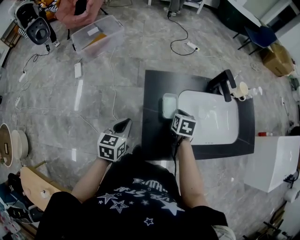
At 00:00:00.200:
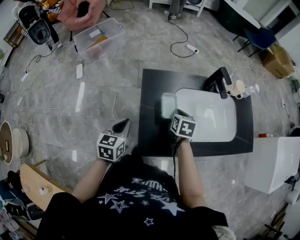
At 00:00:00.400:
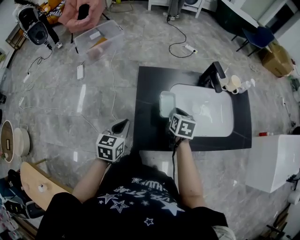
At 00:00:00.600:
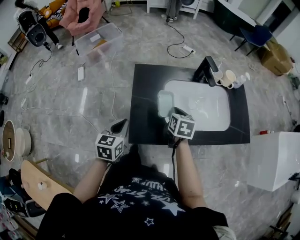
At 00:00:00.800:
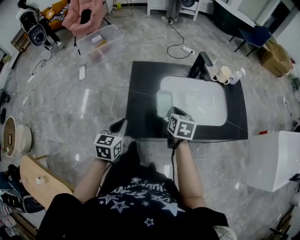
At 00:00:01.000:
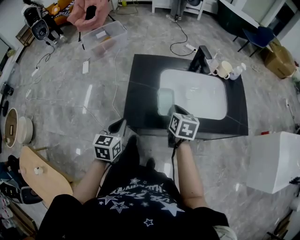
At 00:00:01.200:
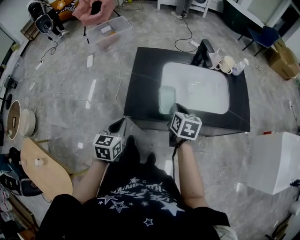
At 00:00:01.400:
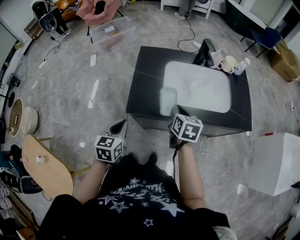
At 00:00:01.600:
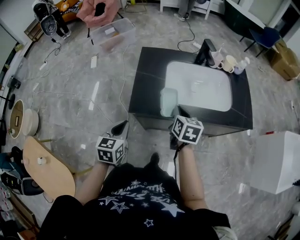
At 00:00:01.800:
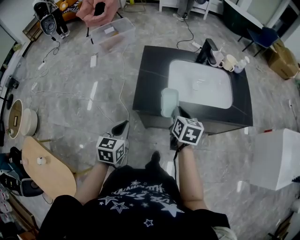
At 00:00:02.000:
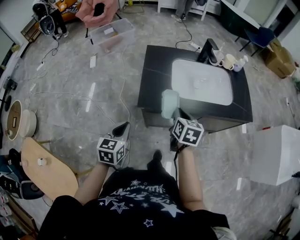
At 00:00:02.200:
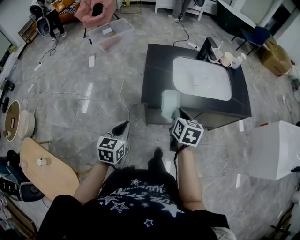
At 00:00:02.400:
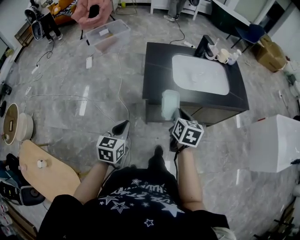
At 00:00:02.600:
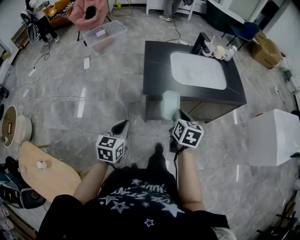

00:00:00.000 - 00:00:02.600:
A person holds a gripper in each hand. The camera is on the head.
00:00:00.000 - 00:00:01.200: The right gripper shifts roughly 20 cm backward, to the right and upward. Meanwhile the left gripper is displaced backward and to the right by about 25 cm.
00:00:01.200 - 00:00:02.600: The left gripper heads backward and to the left, covering roughly 20 cm, while the right gripper heads backward, covering about 20 cm.

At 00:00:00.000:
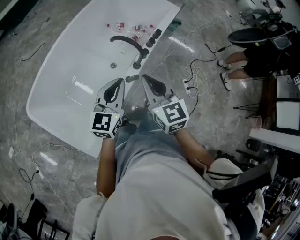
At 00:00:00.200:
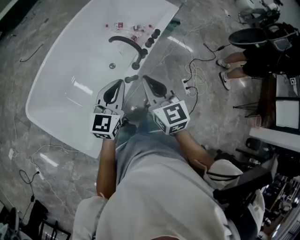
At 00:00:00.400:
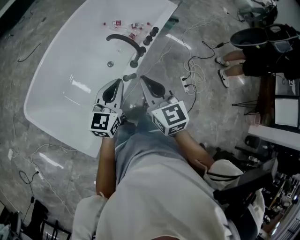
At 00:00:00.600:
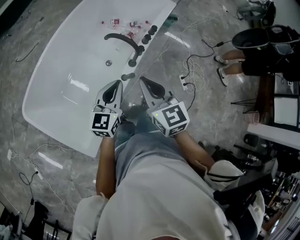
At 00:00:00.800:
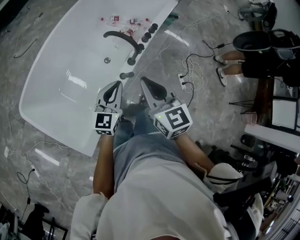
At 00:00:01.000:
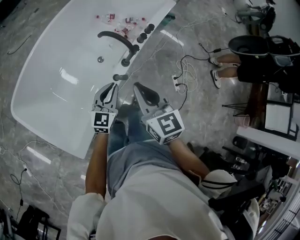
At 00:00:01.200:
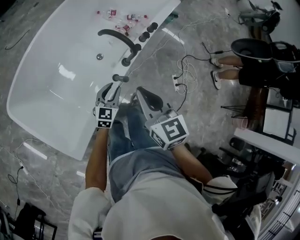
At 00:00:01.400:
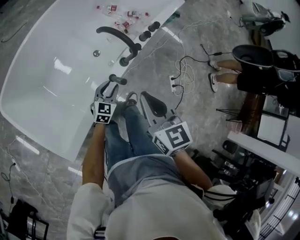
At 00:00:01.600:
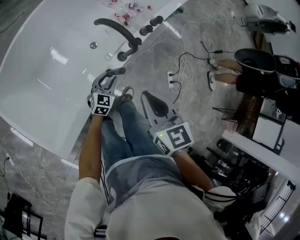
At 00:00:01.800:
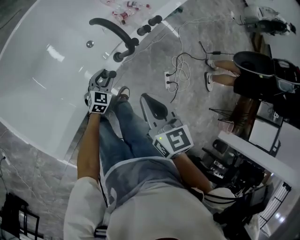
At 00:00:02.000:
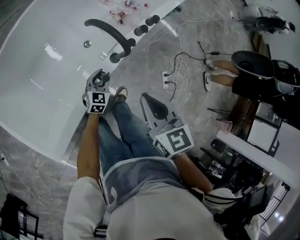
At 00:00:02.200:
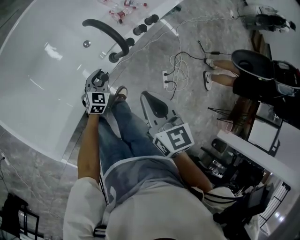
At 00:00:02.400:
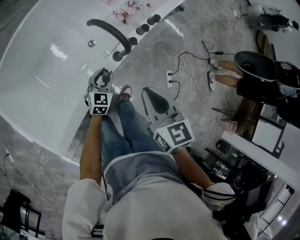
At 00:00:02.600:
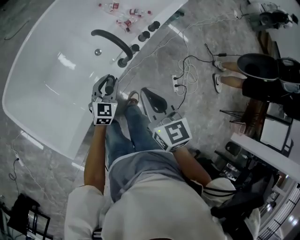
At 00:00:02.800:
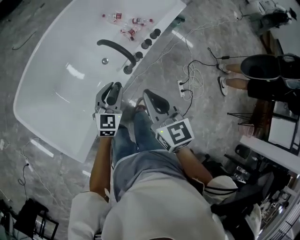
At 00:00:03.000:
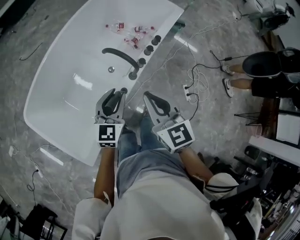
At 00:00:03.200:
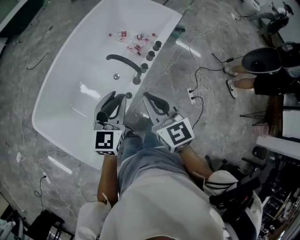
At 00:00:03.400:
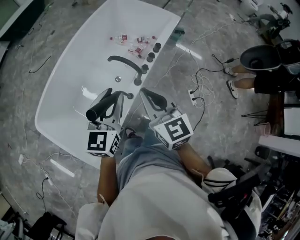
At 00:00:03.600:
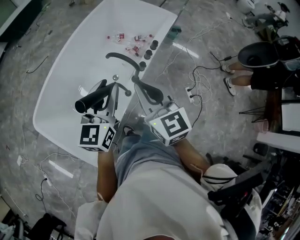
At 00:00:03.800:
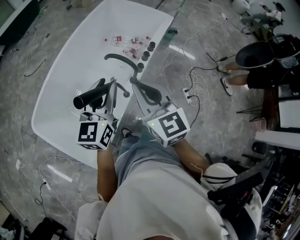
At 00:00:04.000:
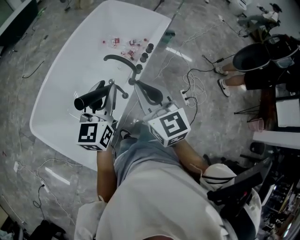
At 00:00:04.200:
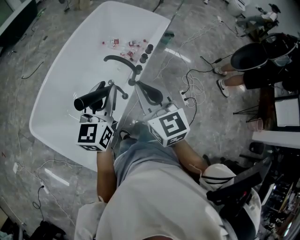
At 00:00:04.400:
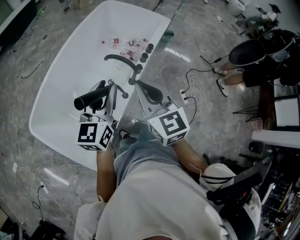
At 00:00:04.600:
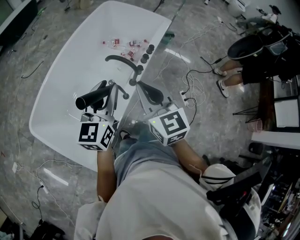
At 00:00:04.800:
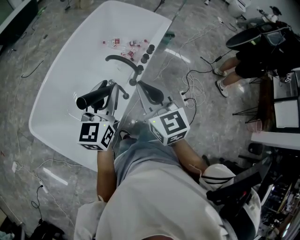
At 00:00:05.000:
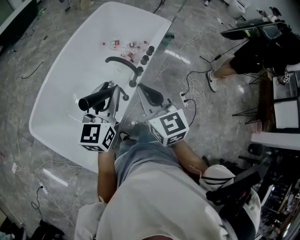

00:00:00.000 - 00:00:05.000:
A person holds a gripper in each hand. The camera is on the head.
00:00:00.000 - 00:00:01.600: The right gripper goes about 30 cm downward. Meanwhile the left gripper travels downward by about 50 cm, changes its angle by about 20 degrees, and opens its fingers.
00:00:01.600 - 00:00:03.400: The right gripper moves upward, some 30 cm. The left gripper goes approximately 60 cm upward.
00:00:03.400 - 00:00:05.000: Both grippers move upward, approximately 5 cm.

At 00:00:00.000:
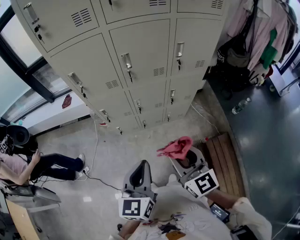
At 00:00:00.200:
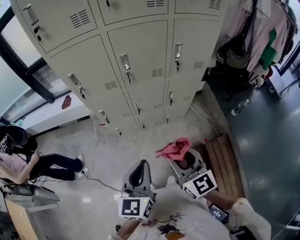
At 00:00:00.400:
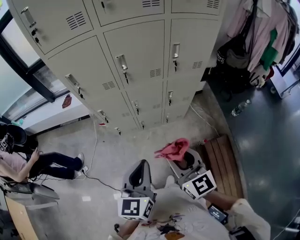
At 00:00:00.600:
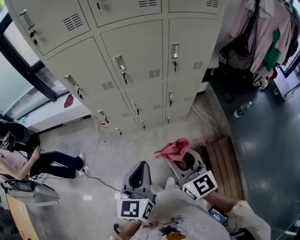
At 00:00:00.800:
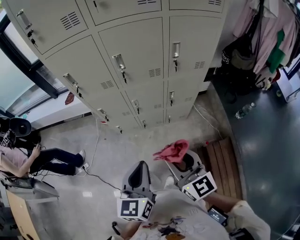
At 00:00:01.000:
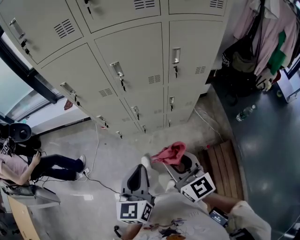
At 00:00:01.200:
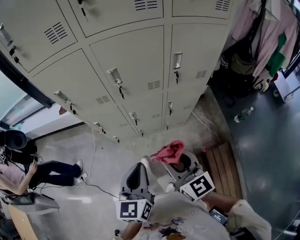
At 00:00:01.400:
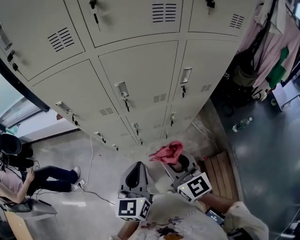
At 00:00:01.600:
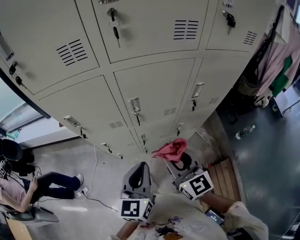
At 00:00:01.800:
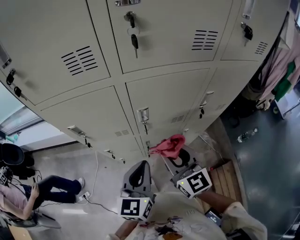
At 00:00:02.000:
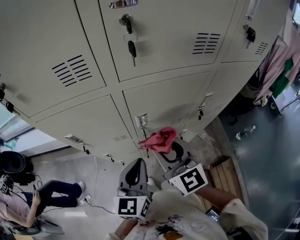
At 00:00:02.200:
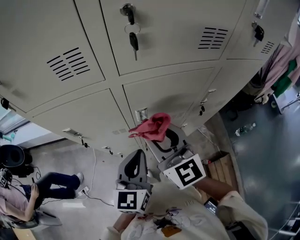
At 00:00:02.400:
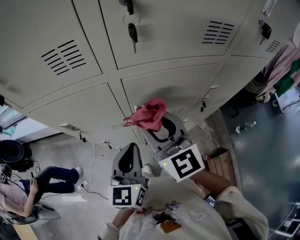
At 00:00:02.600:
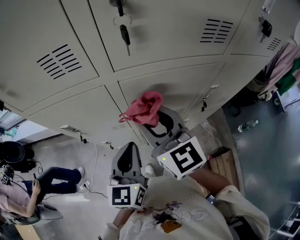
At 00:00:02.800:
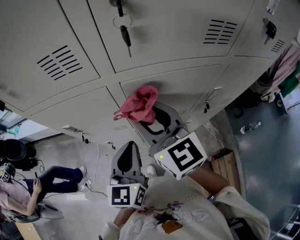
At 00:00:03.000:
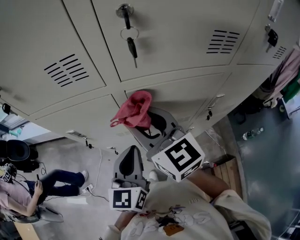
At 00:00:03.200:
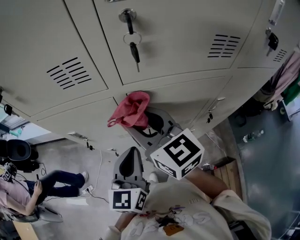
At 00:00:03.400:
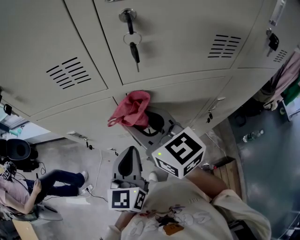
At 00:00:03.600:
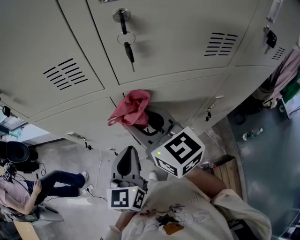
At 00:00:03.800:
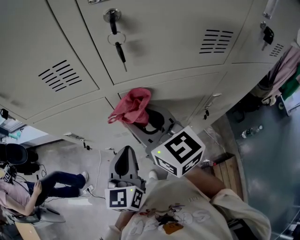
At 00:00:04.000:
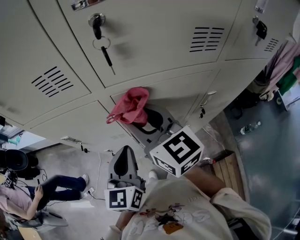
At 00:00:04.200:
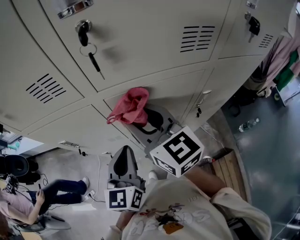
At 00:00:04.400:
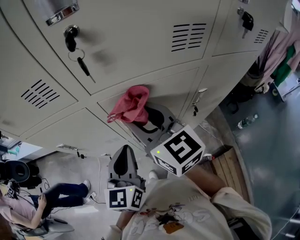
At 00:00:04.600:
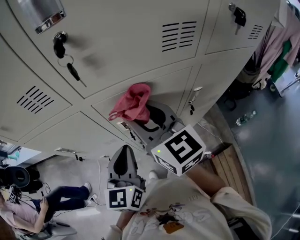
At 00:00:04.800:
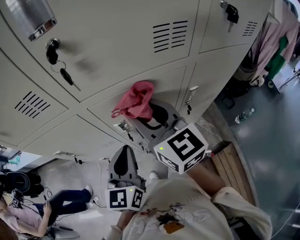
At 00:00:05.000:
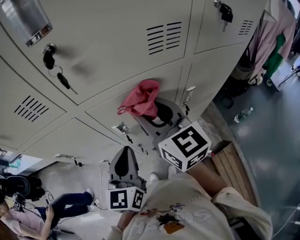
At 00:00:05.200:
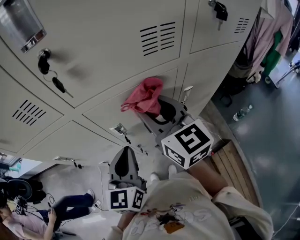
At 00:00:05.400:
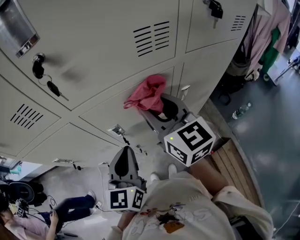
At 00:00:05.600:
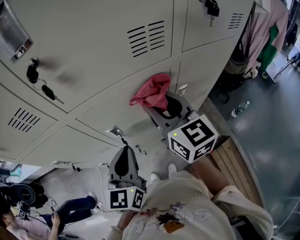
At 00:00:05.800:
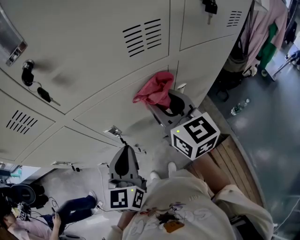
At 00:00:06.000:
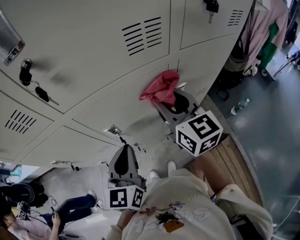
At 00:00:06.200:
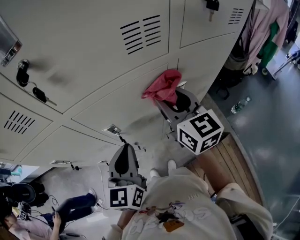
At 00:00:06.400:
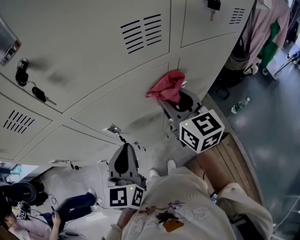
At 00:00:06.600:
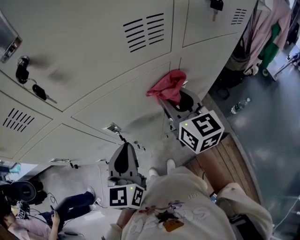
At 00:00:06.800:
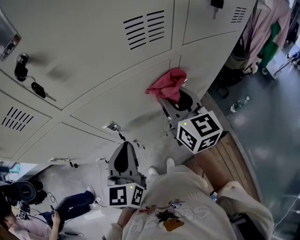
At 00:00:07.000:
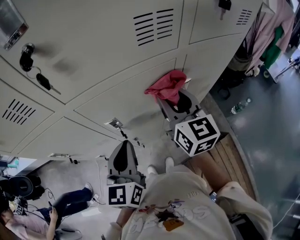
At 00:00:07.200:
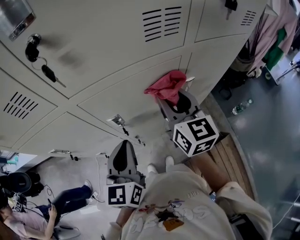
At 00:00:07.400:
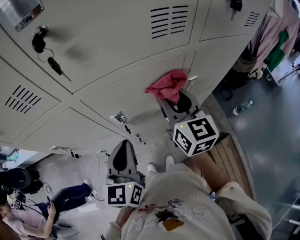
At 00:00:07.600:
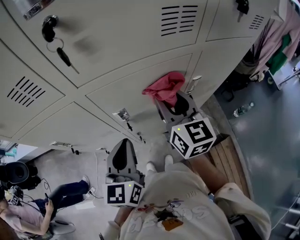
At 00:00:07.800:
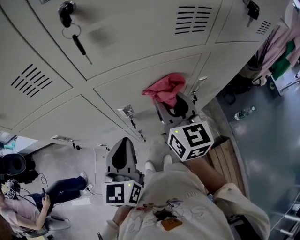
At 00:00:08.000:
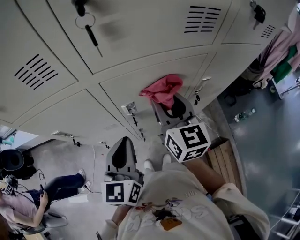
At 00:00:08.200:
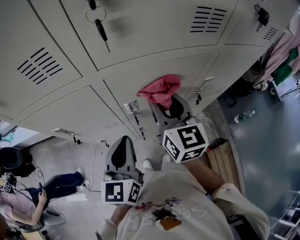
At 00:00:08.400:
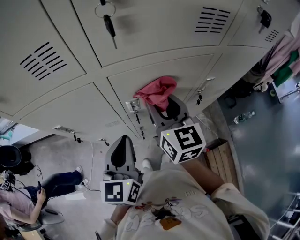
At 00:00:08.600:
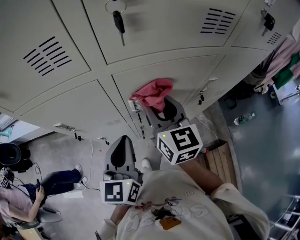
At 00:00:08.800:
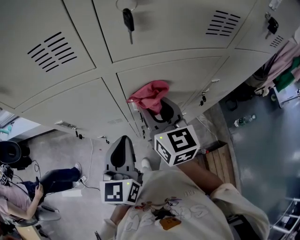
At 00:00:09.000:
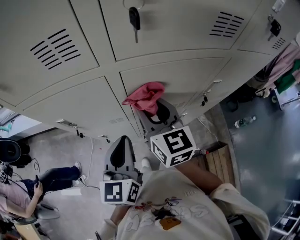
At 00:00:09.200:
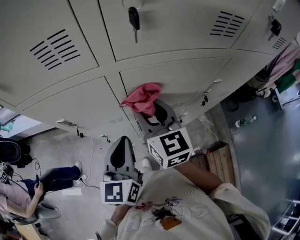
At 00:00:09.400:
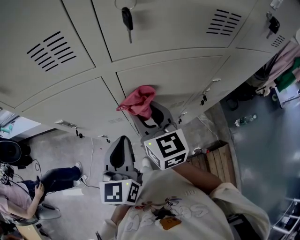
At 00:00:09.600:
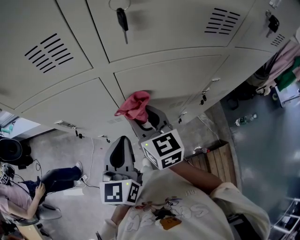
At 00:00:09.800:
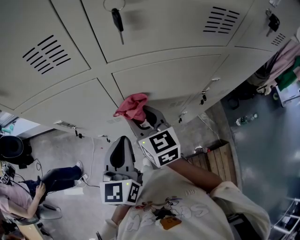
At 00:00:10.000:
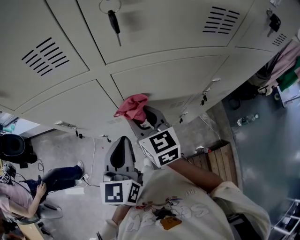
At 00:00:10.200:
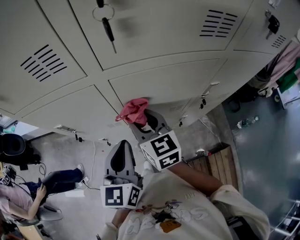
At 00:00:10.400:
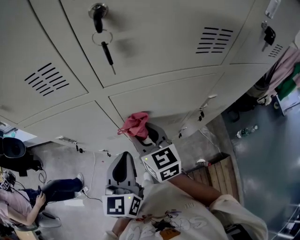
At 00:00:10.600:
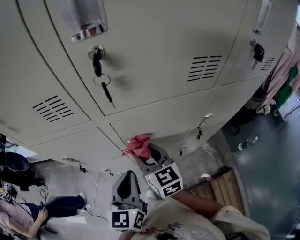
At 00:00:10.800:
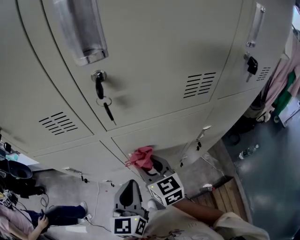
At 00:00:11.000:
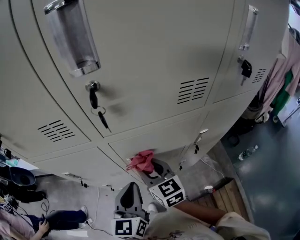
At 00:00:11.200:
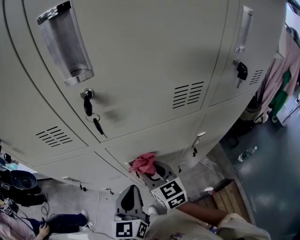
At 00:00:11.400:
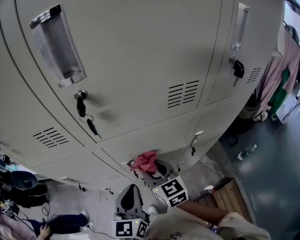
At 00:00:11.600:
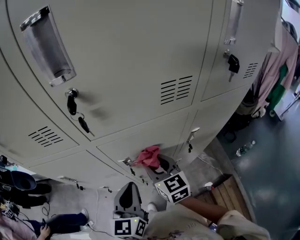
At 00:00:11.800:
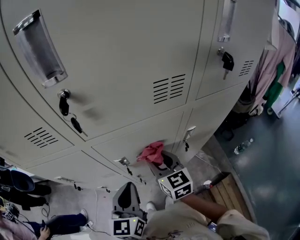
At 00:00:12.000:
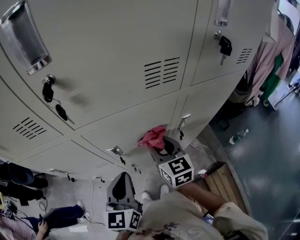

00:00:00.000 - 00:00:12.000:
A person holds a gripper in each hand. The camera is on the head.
00:00:00.000 - 00:00:01.600: Both grippers move forward, approximately 25 cm.
00:00:01.600 - 00:00:03.000: The left gripper heads forward, covering some 15 cm; the right gripper heads forward, upward and to the left, covering some 25 cm.
00:00:03.000 - 00:00:04.400: The right gripper moves to the right, about 5 cm.
00:00:04.400 - 00:00:06.000: The right gripper shifts roughly 15 cm to the right, and turns by roughly 20 degrees; the left gripper travels to the right by approximately 5 cm.
00:00:06.000 - 00:00:07.600: The right gripper ends up approximately 5 cm from where it was.
00:00:07.600 - 00:00:09.000: The left gripper heads to the left, covering approximately 5 cm. Meanwhile the right gripper shifts about 15 cm to the left.
00:00:09.000 - 00:00:10.400: The right gripper moves downward, approximately 5 cm.
00:00:10.400 - 00:00:12.000: The right gripper heads to the right, covering some 15 cm. The left gripper moves to the right, about 5 cm.

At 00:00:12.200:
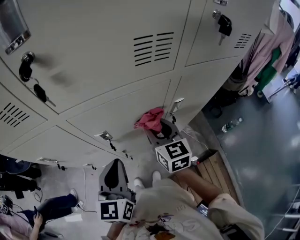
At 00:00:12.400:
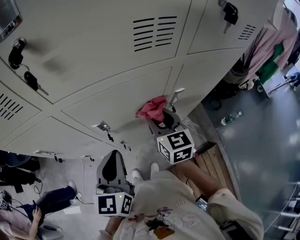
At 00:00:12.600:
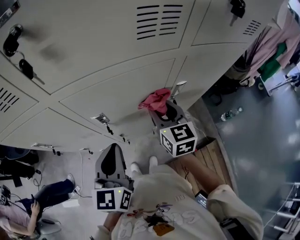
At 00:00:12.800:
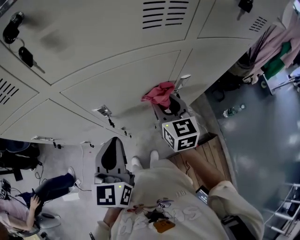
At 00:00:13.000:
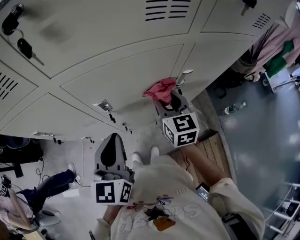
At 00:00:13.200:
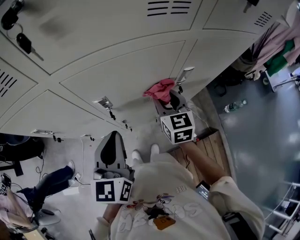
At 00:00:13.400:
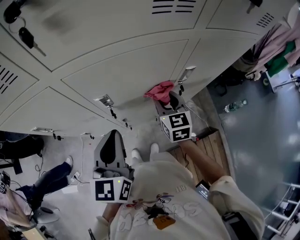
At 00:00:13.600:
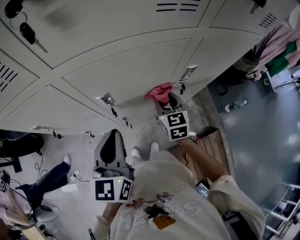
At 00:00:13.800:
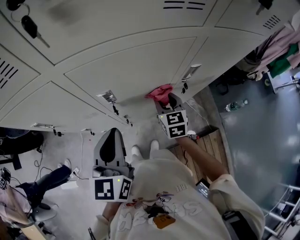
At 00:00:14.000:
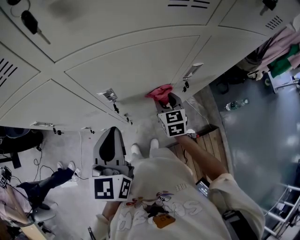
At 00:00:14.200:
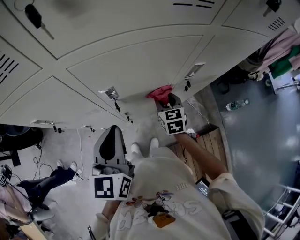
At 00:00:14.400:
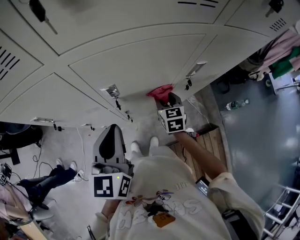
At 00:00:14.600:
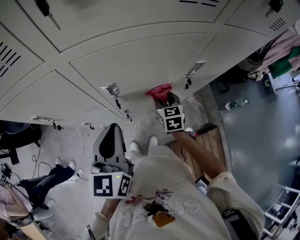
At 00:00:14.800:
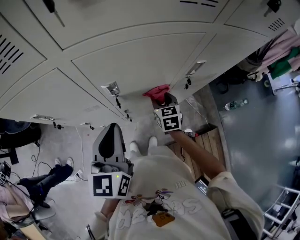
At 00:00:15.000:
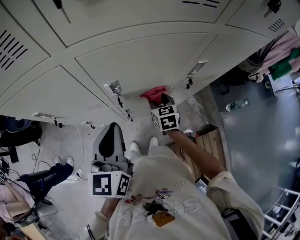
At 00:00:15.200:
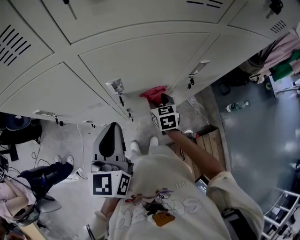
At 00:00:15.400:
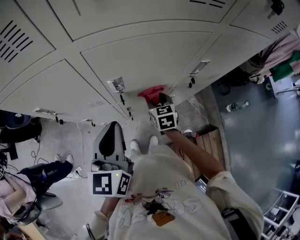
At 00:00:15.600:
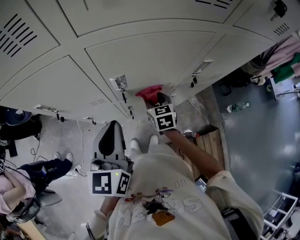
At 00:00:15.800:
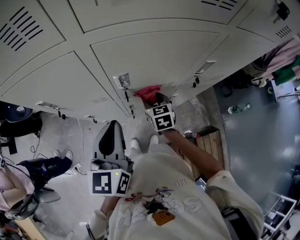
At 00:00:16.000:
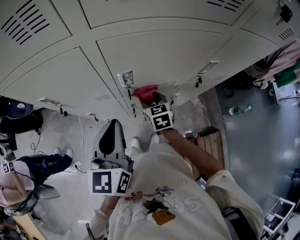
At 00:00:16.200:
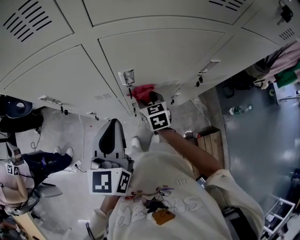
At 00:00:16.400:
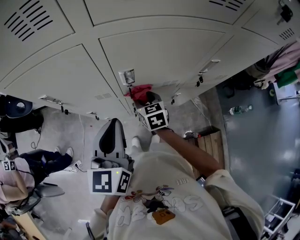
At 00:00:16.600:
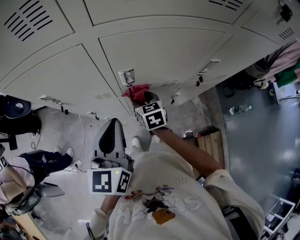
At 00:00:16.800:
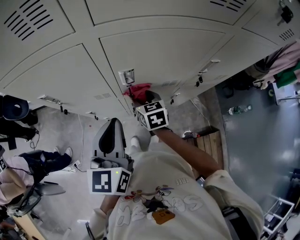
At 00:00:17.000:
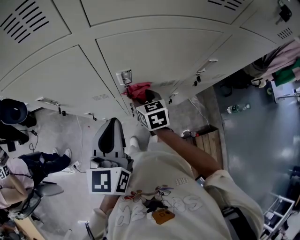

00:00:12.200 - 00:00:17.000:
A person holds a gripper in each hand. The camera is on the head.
00:00:12.200 - 00:00:13.800: The right gripper travels downward by roughly 15 cm.
00:00:13.800 - 00:00:15.400: The right gripper moves to the left and downward, some 10 cm.
00:00:15.400 - 00:00:17.000: The right gripper goes about 10 cm to the left.
